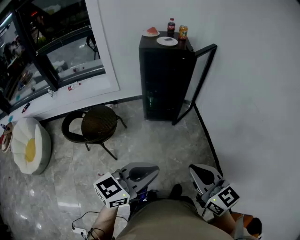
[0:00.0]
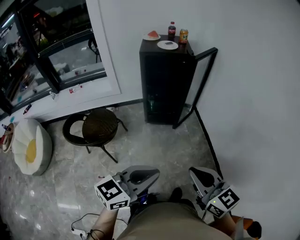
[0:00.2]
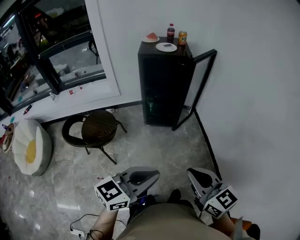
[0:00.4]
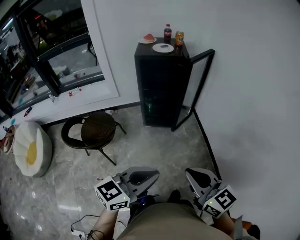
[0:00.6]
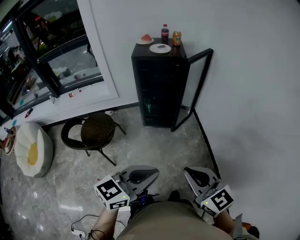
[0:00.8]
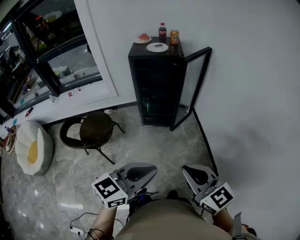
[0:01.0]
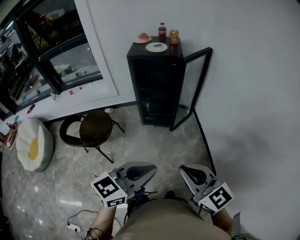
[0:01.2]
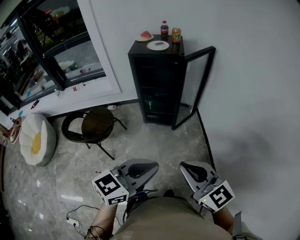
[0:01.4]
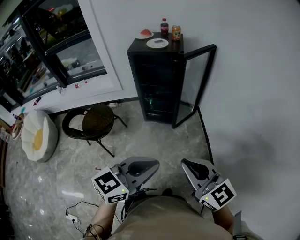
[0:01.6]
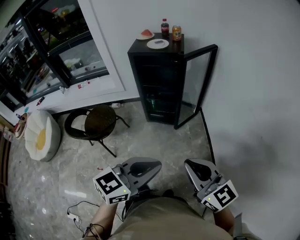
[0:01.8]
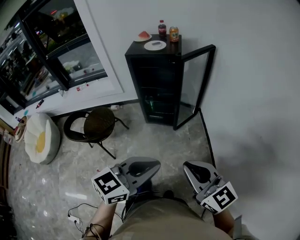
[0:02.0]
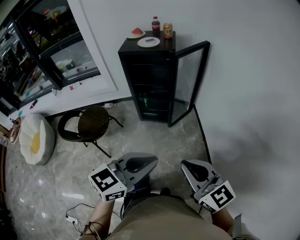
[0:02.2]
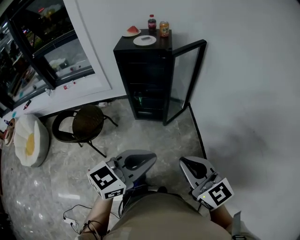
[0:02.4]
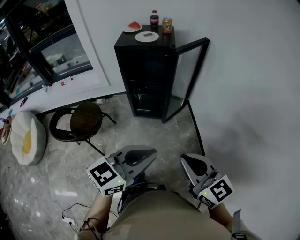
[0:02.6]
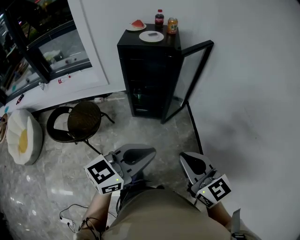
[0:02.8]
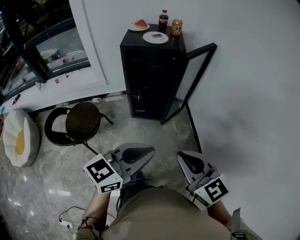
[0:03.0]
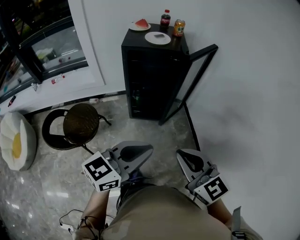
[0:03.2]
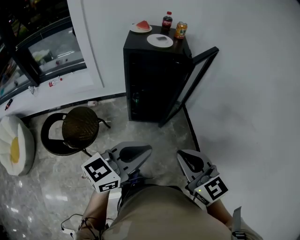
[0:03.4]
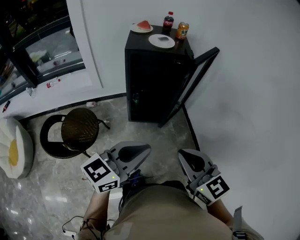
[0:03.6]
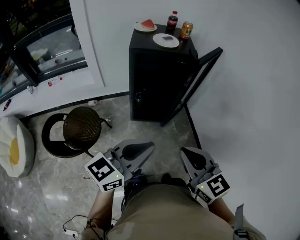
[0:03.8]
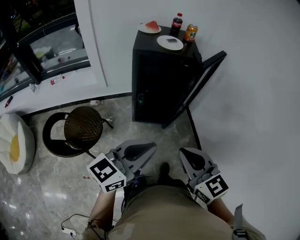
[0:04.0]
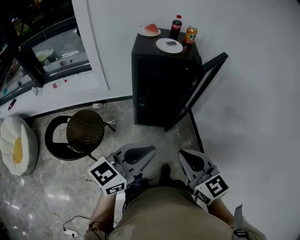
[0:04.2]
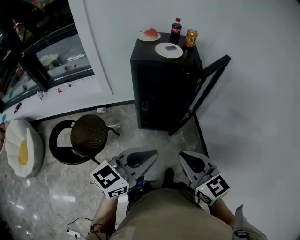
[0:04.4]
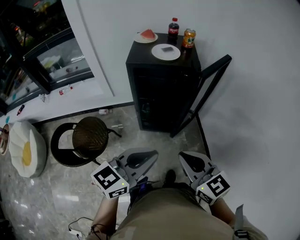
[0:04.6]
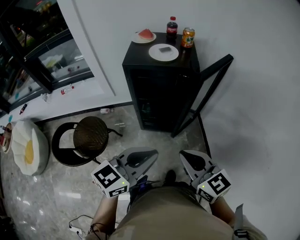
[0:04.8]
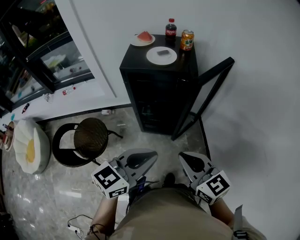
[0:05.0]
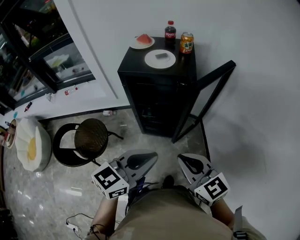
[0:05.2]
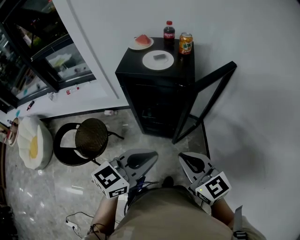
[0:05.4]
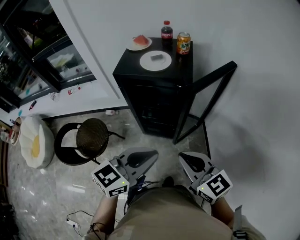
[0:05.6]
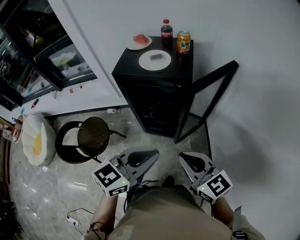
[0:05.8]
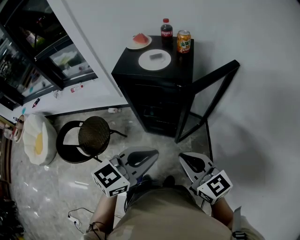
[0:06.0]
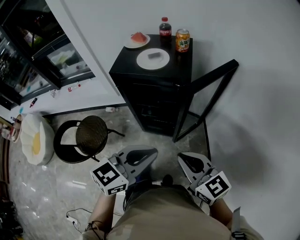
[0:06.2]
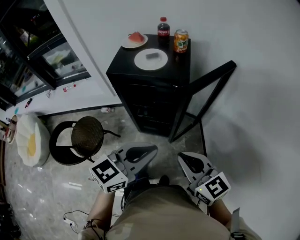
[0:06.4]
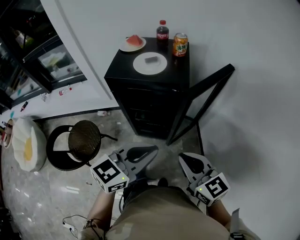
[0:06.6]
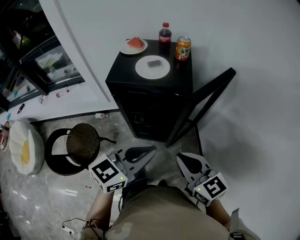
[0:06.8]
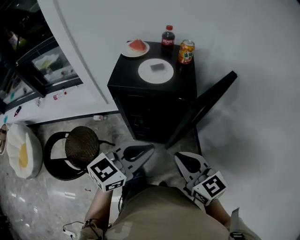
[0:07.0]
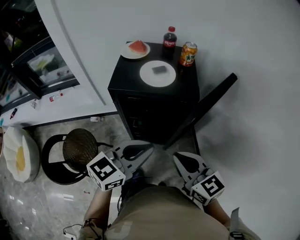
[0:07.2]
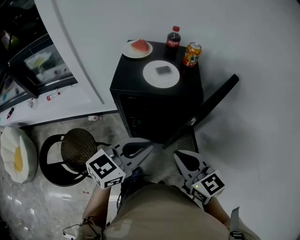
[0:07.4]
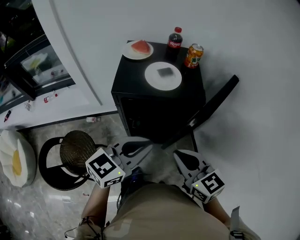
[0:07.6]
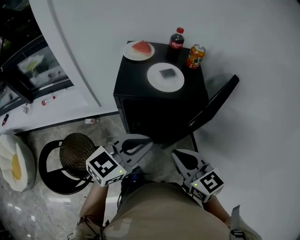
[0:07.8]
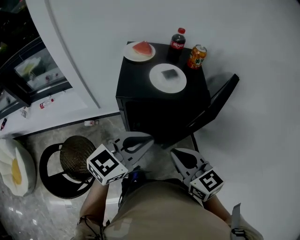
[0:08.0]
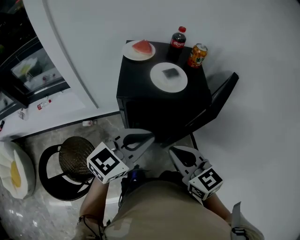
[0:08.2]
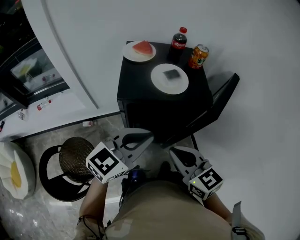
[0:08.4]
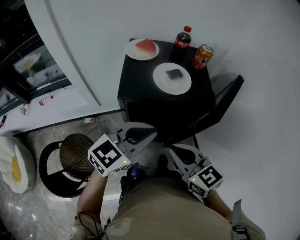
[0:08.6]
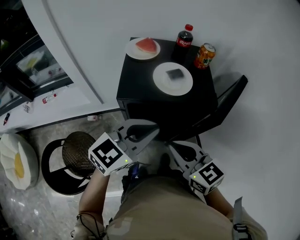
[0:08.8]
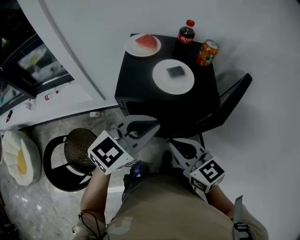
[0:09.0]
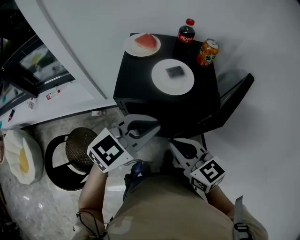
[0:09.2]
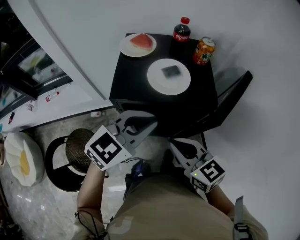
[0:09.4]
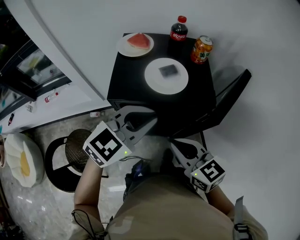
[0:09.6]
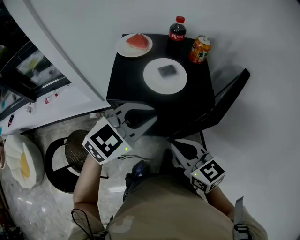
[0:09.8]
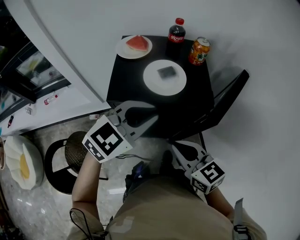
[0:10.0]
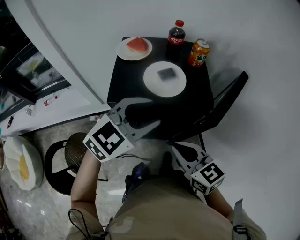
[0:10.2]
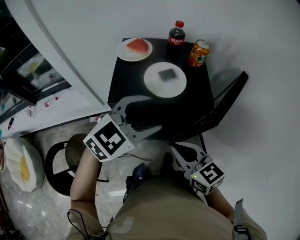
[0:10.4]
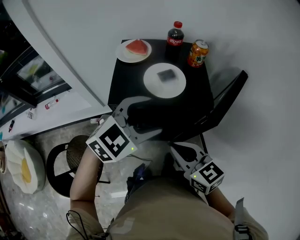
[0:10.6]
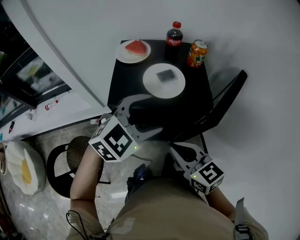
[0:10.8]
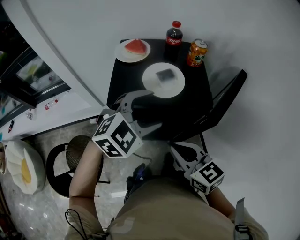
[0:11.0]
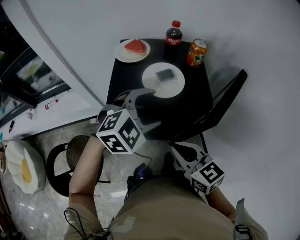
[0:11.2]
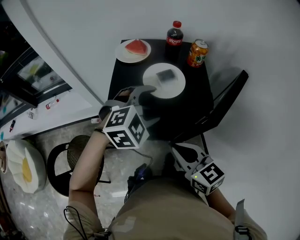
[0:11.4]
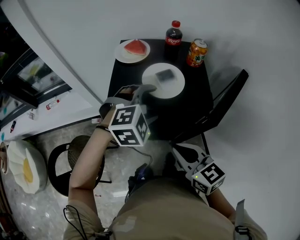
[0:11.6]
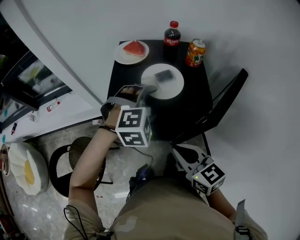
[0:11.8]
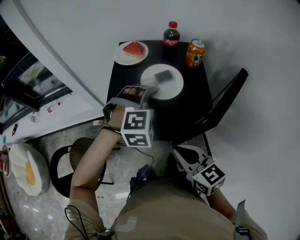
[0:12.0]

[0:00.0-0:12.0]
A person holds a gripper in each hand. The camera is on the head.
0:00.0 to 0:01.6: The two grippers go roughly 15 cm to the right and forward.
0:01.6 to 0:03.0: The two grippers go about 10 cm forward and to the left.
0:03.0 to 0:04.4: Both grippers move forward and to the left, some 15 cm.
0:04.4 to 0:06.0: The left gripper is displaced to the right and forward by roughly 20 cm; the right gripper goes roughly 20 cm forward and to the right.
0:06.0 to 0:07.6: The grippers both shift to the left and forward by roughly 15 cm.
0:07.6 to 0:09.0: The left gripper goes some 10 cm forward. Meanwhile the right gripper moves to the left and forward, some 10 cm.
0:09.0 to 0:10.4: The left gripper opens.
0:10.4 to 0:12.0: The left gripper goes about 10 cm downward and forward, and changes its angle by some 50 degrees.

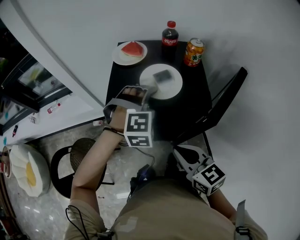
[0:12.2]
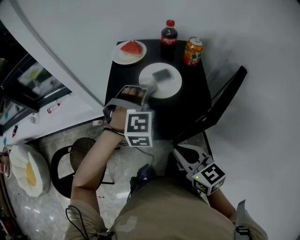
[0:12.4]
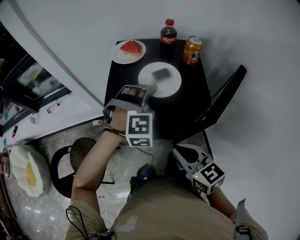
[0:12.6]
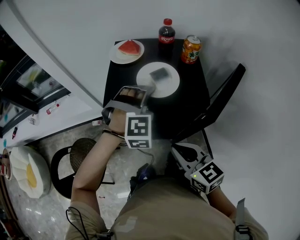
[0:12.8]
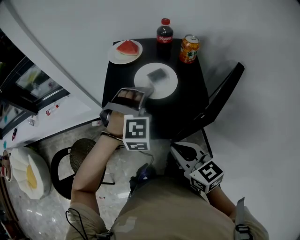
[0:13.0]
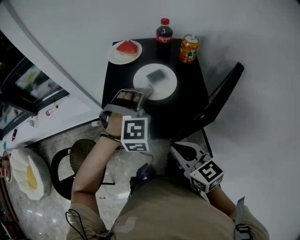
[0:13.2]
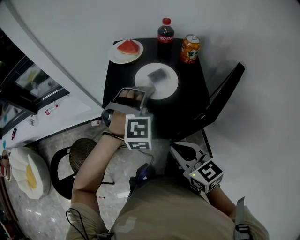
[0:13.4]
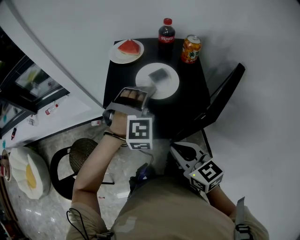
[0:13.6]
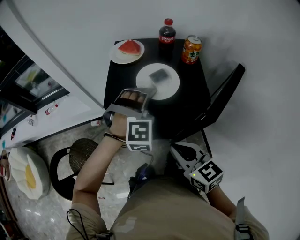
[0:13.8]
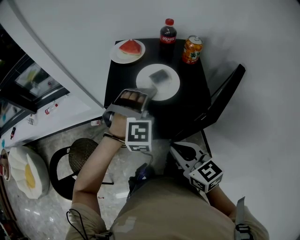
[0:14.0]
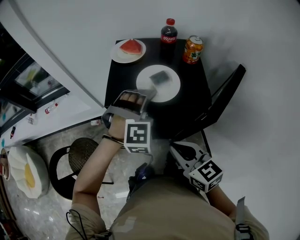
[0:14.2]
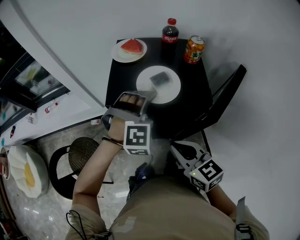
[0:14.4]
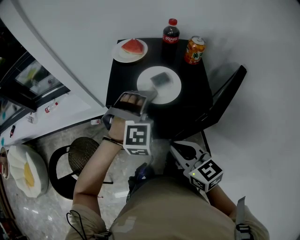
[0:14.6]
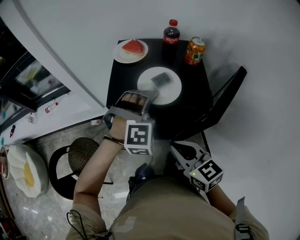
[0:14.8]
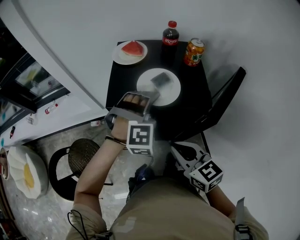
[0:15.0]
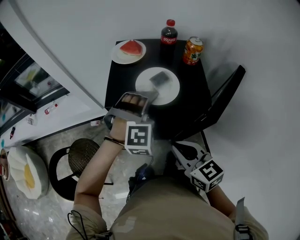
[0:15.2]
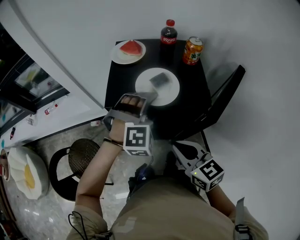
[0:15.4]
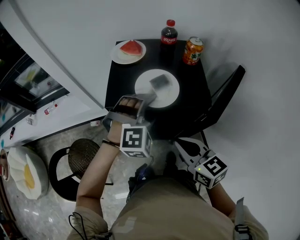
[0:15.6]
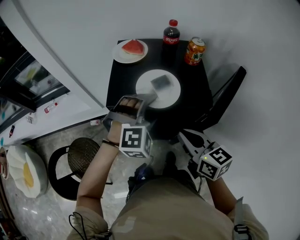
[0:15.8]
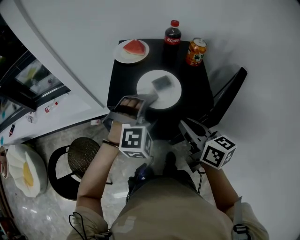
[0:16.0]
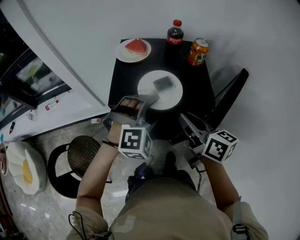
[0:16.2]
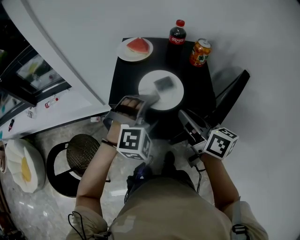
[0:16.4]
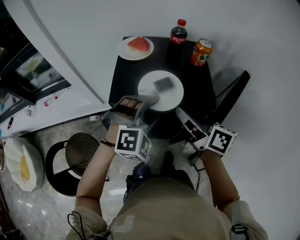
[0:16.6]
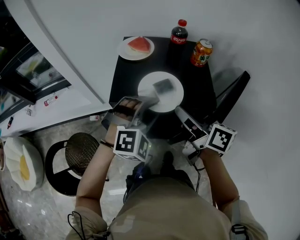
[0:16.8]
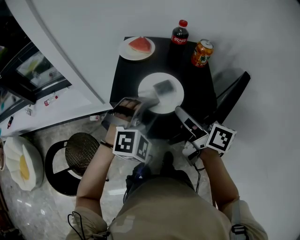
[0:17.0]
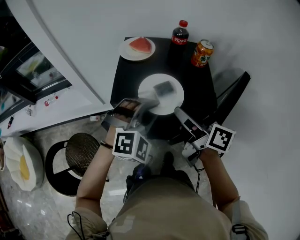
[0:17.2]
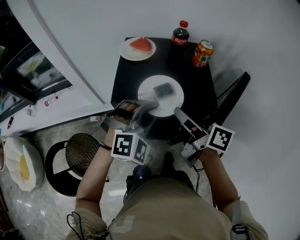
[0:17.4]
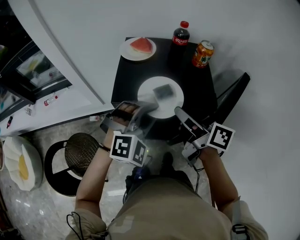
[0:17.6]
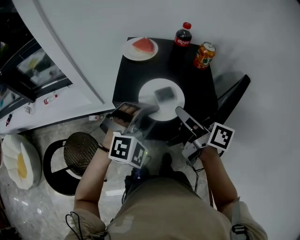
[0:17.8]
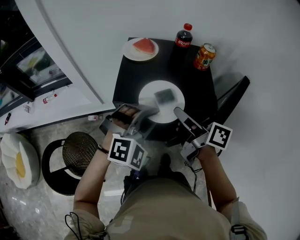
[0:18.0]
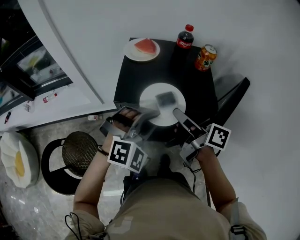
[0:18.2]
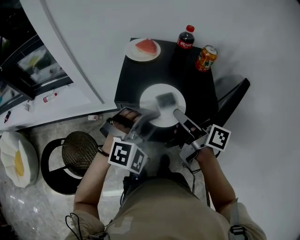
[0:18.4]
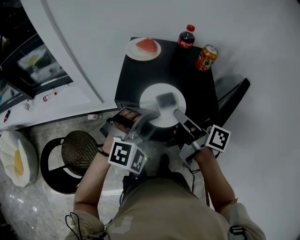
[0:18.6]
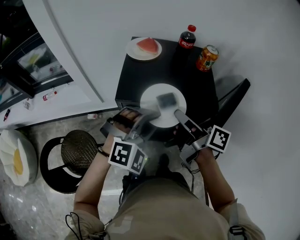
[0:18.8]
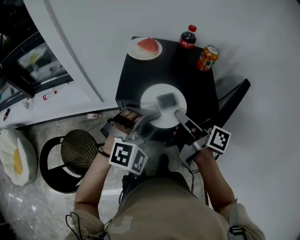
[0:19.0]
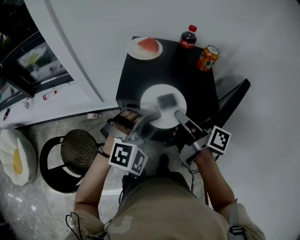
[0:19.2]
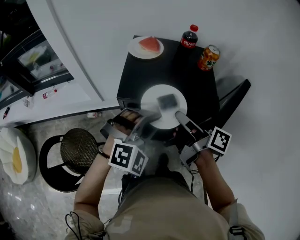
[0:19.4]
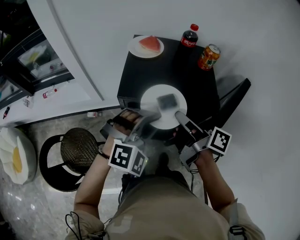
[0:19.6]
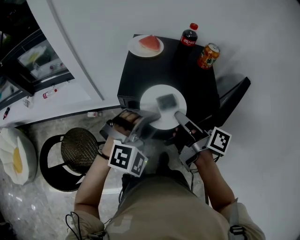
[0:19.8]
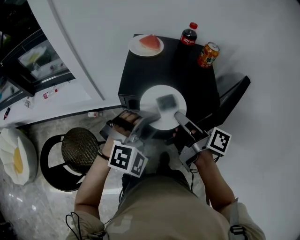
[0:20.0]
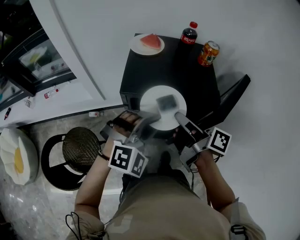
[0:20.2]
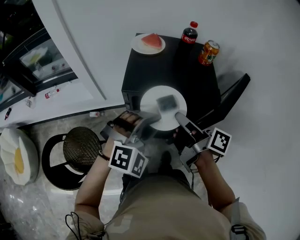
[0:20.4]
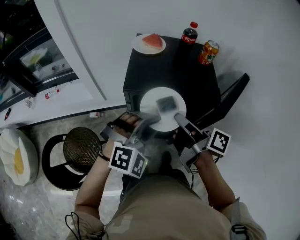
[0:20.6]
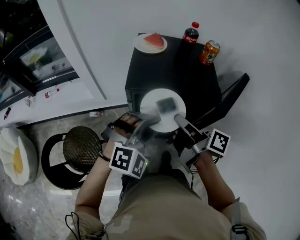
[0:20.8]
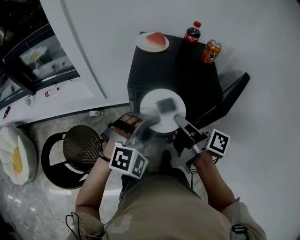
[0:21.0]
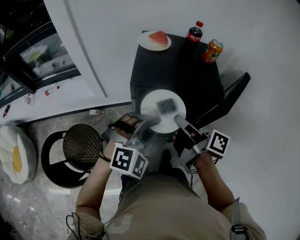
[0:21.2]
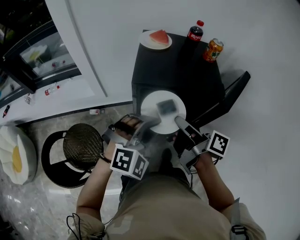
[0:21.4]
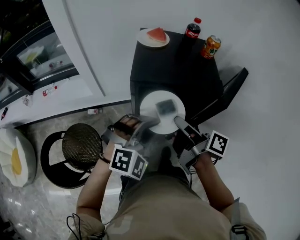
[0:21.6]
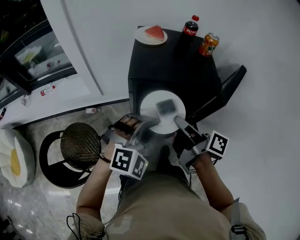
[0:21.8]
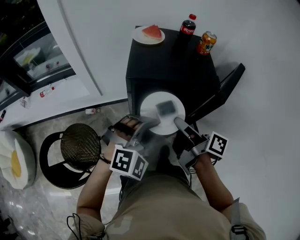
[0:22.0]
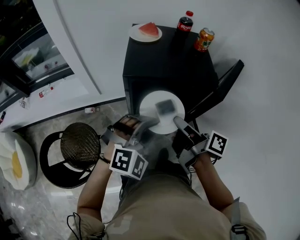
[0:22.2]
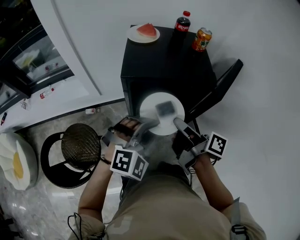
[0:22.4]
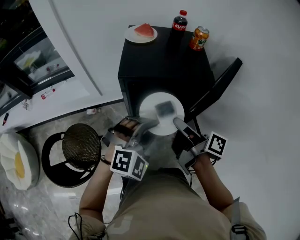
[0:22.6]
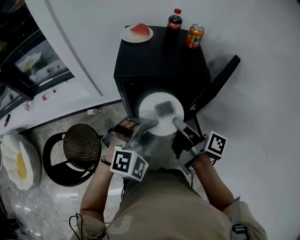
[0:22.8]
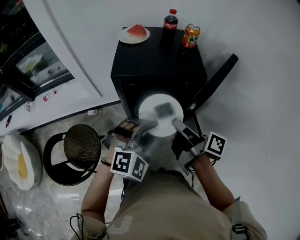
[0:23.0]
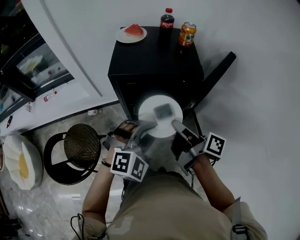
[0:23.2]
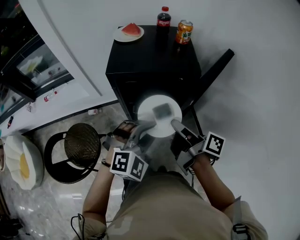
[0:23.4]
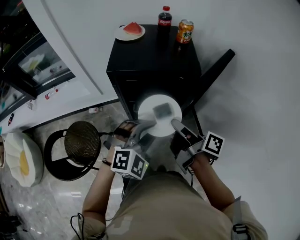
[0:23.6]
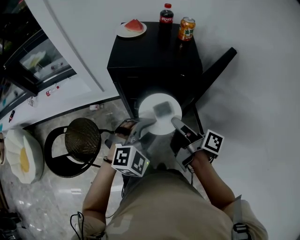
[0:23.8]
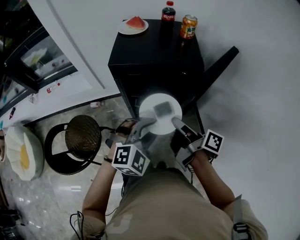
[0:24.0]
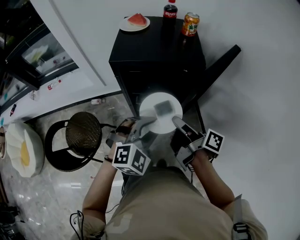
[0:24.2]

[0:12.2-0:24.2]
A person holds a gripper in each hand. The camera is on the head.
0:12.2 to 0:15.2: There are only small adjustments of the grippers.
0:15.2 to 0:16.6: The right gripper moves forward and upward, approximately 10 cm, rotates about 40 degrees, and opens its fingers.
0:16.6 to 0:18.2: The left gripper closes its fingers.
0:18.2 to 0:19.8: The grippers make only small movements.
0:19.8 to 0:21.2: Both grippers travel together backward, roughly 5 cm.
0:21.2 to 0:22.6: The right gripper shifts by roughly 5 cm; the left gripper ends up roughly 5 cm from where it was.
0:22.6 to 0:24.2: The right gripper travels to the right by about 5 cm. Meanwhile the left gripper shifts by roughly 5 cm.
